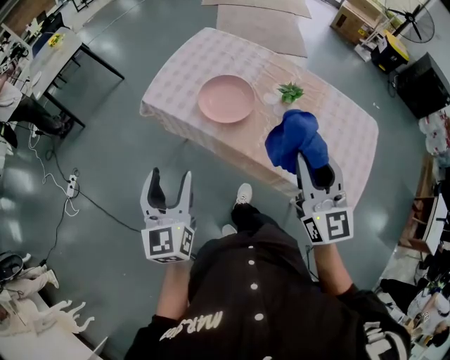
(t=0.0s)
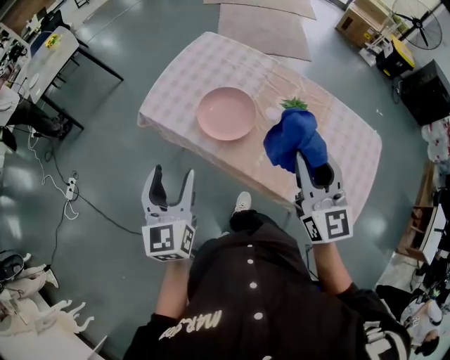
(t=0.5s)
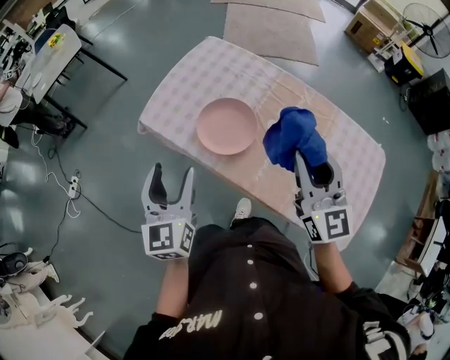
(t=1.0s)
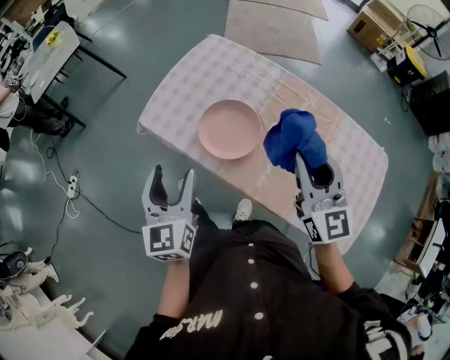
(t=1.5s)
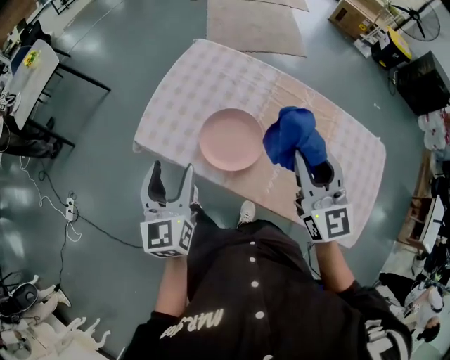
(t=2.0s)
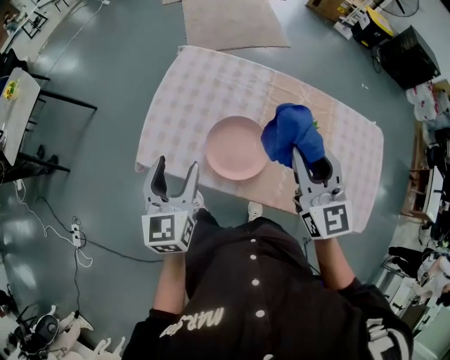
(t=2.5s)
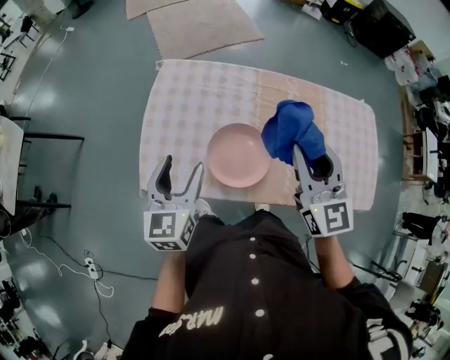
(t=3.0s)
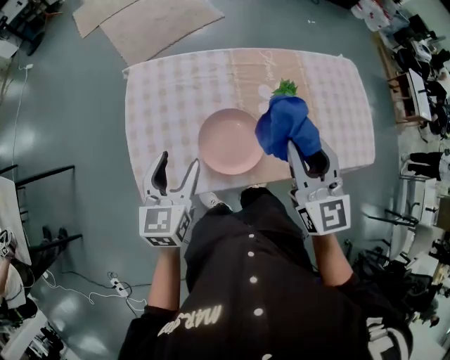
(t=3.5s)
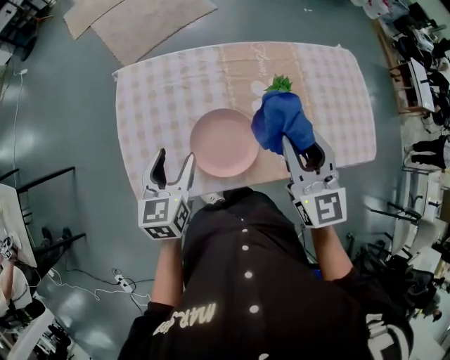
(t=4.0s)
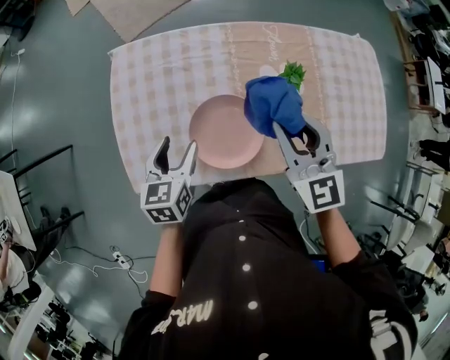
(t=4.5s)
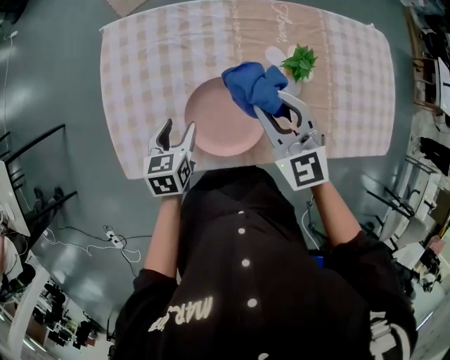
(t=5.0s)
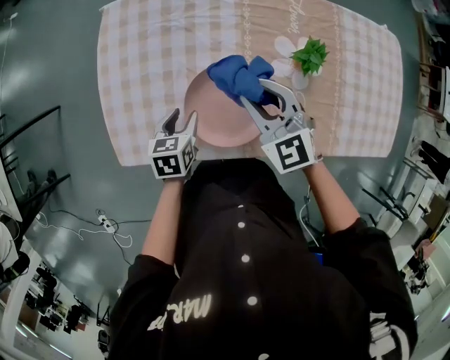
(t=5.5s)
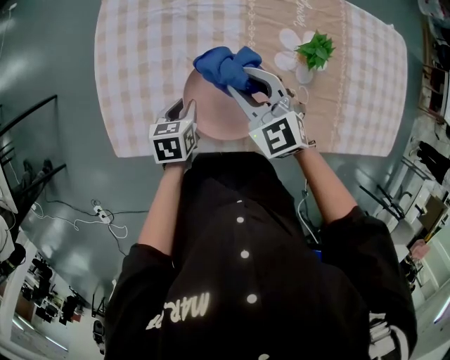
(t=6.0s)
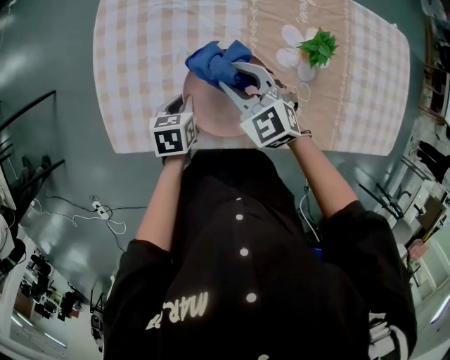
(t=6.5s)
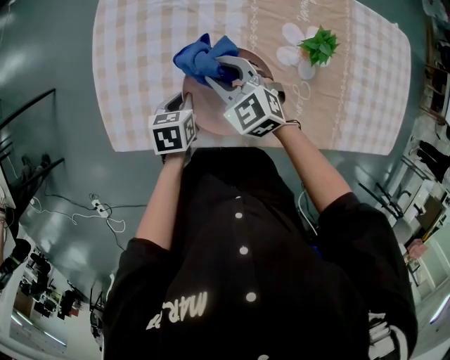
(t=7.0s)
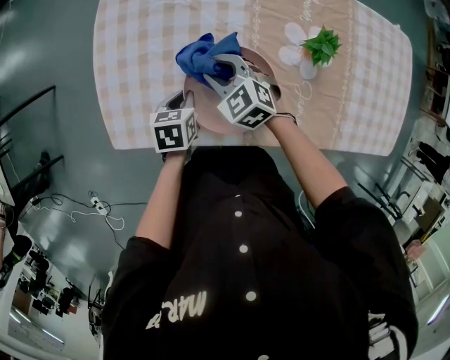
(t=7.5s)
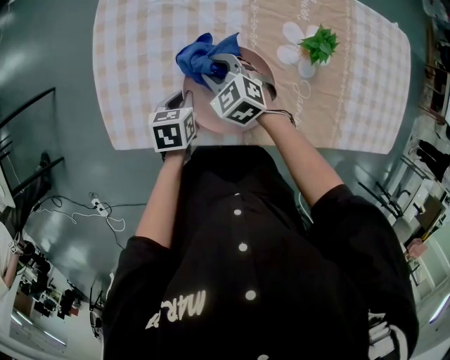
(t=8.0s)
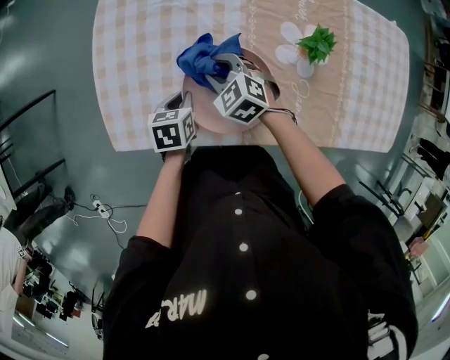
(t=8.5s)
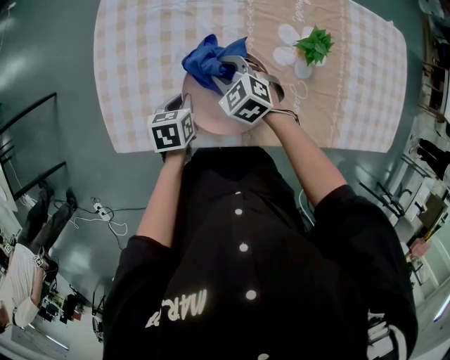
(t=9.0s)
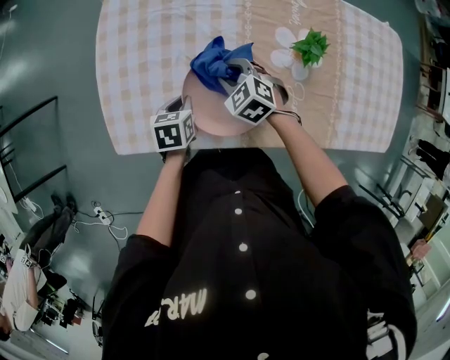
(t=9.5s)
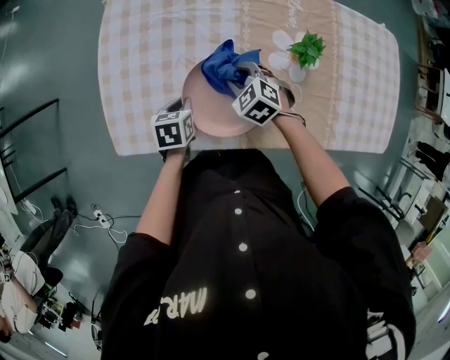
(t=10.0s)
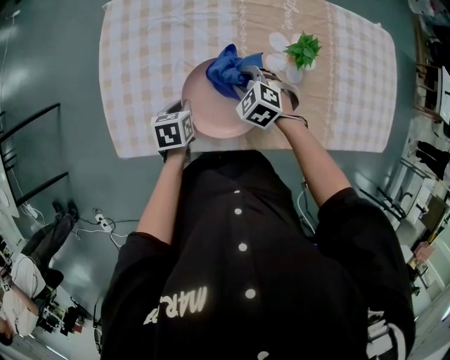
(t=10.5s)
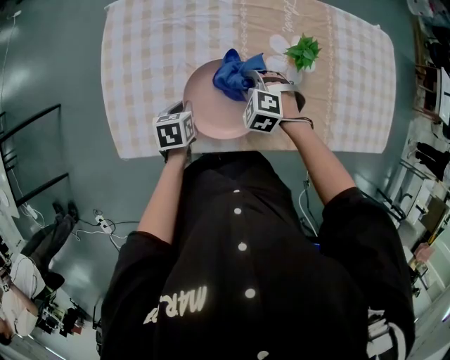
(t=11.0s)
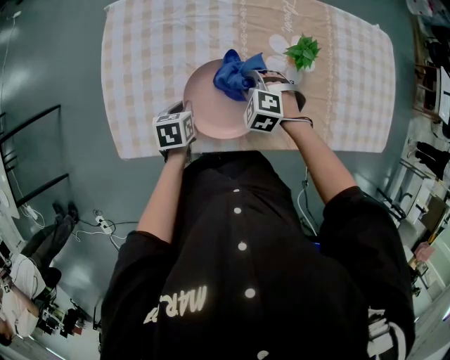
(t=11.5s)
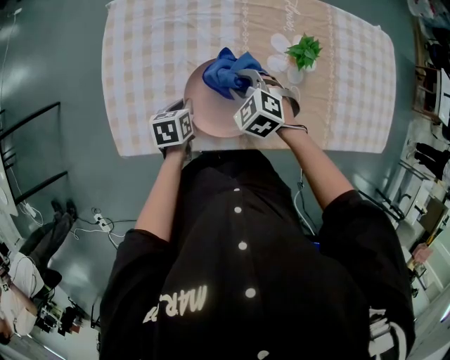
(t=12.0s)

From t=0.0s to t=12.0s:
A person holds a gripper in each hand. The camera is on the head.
From t=0.0s to t=2.0s: Both grippers move forward, some 25 cm.
From t=2.0s to t=4.0s: The left gripper changes place by roughly 20 cm, and turns by approximately 40 degrees. Meanwhile the right gripper shifts by roughly 5 cm, and changes its angle by some 30 degrees.
From t=4.0s to t=6.0s: The right gripper shifts roughly 25 cm downward and to the left, and turns by approximately 40 degrees; the left gripper shifts some 25 cm downward, swivels some 30 degrees, and closes.
From t=6.0s to t=8.0s: The right gripper is displaced downward and to the left by roughly 10 cm.
From t=8.0s to t=10.0s: The right gripper travels to the right by roughly 5 cm.

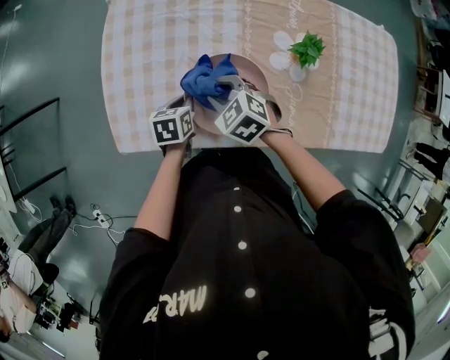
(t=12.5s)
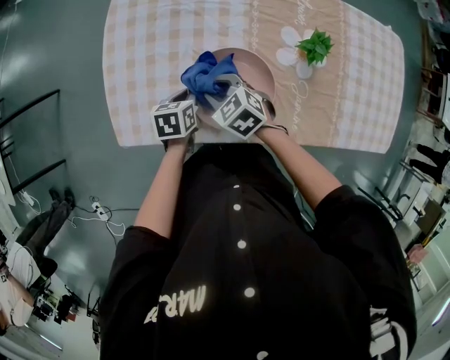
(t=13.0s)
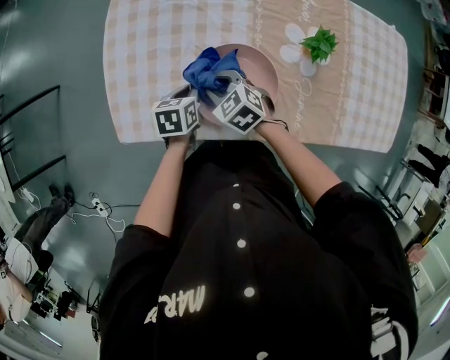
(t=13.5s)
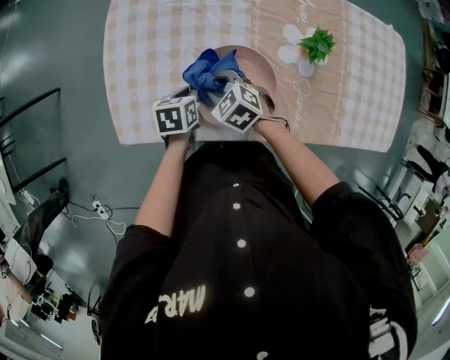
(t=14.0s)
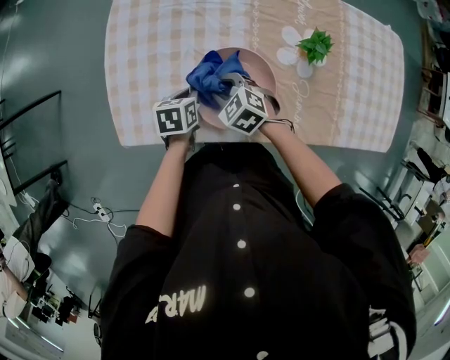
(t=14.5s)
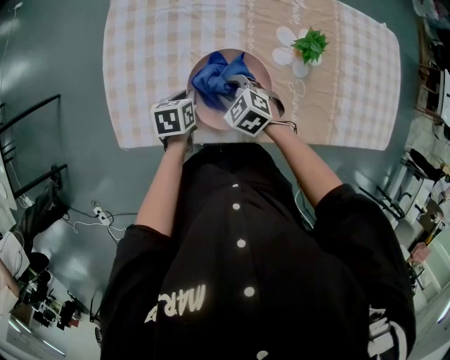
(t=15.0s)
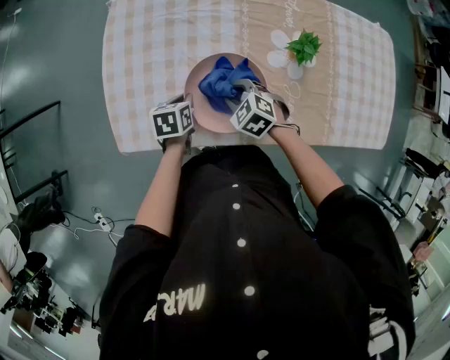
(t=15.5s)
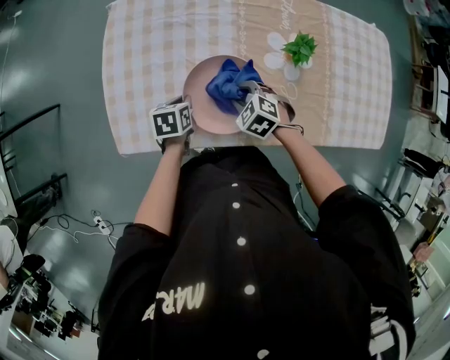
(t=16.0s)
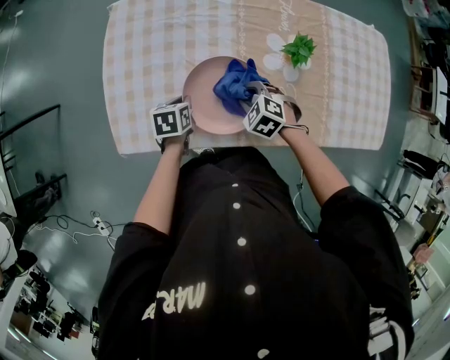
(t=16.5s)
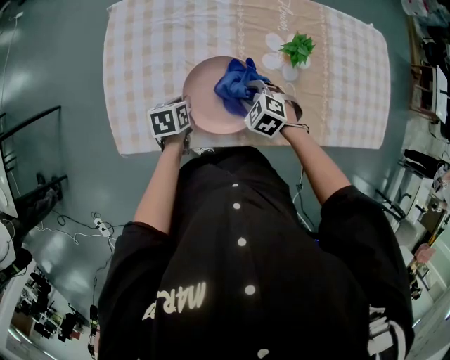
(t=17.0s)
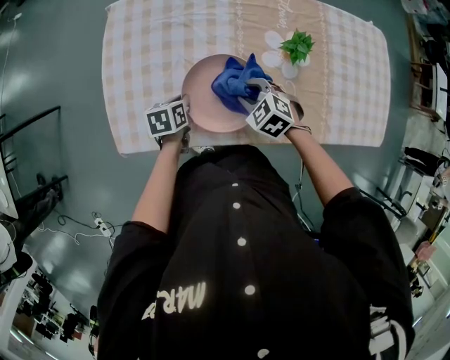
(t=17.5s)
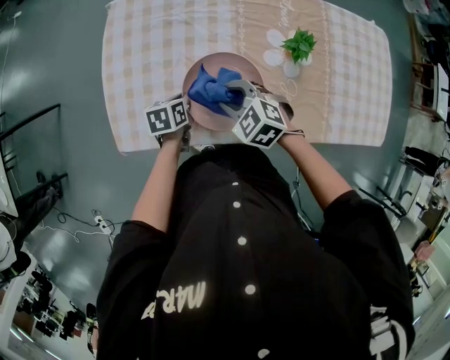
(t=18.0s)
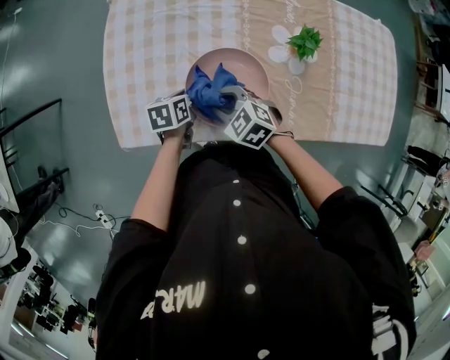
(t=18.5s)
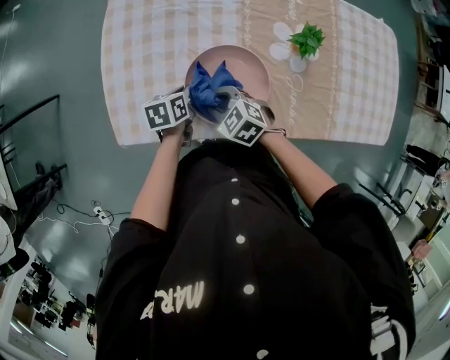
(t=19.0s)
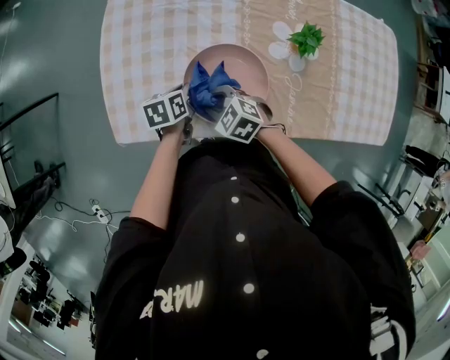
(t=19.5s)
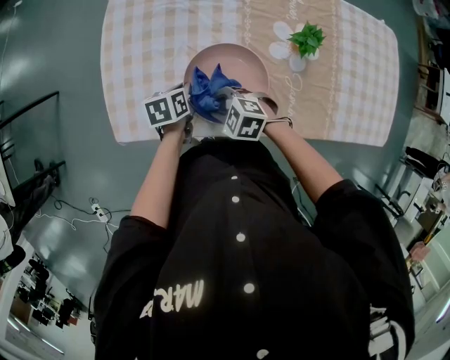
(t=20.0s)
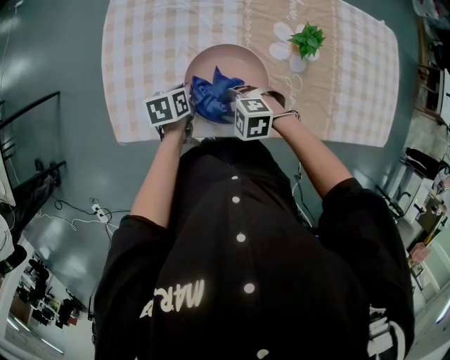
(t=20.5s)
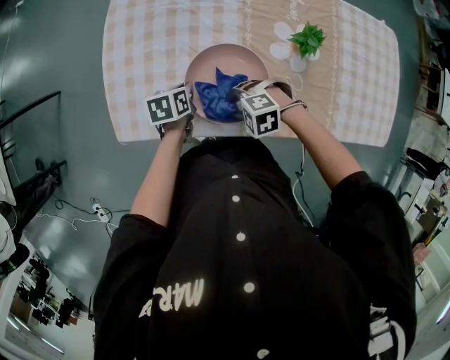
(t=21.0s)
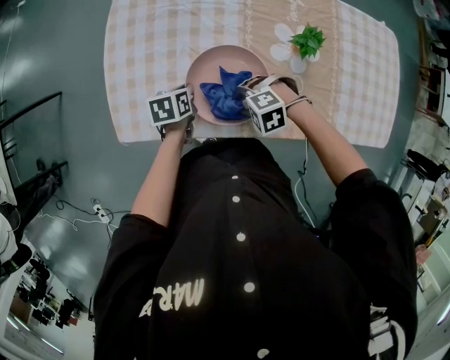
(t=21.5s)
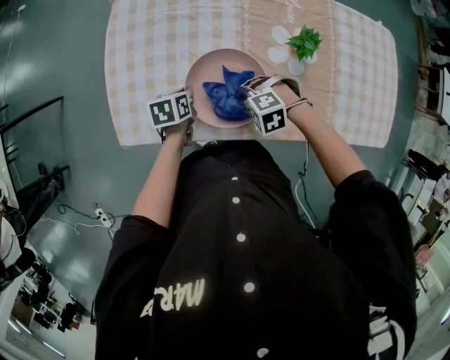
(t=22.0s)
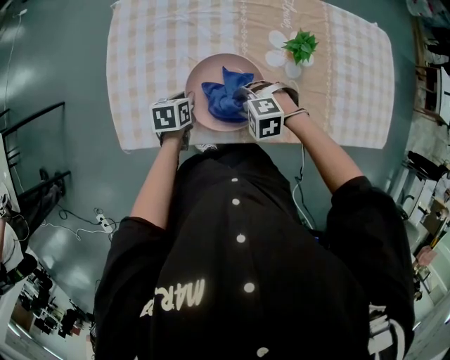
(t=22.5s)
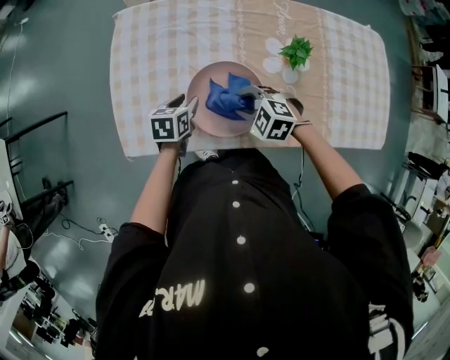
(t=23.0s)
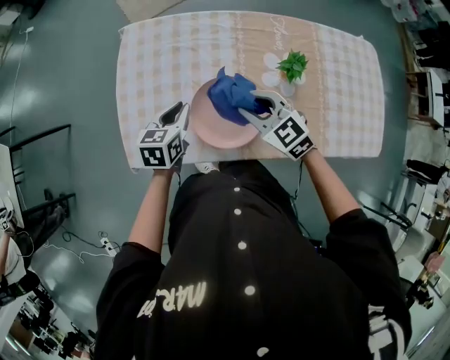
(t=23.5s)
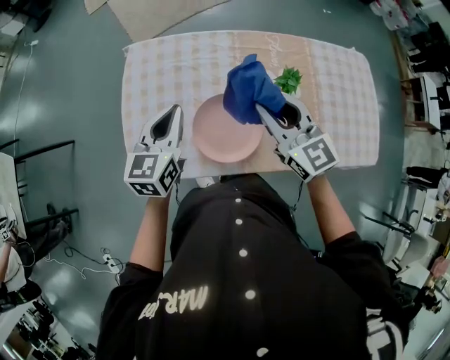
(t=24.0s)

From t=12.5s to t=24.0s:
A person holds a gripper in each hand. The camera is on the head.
From t=12.5s to t=14.5s: The right gripper shifts some 5 cm downward.
From t=14.5s to t=16.5s: The right gripper heads to the right, covering approximately 10 cm.
From t=16.5s to t=18.5s: The right gripper heads to the left, covering roughly 10 cm.
From t=18.5s to t=20.0s: The right gripper shifts by about 5 cm.
From t=20.0s to t=22.0s: The right gripper ends up approximately 10 cm from where it was, and turns by about 30 degrees.
From t=22.0s to t=24.0s: Both grippers travel together upward, some 30 cm. The left gripper angles its fingers upward, by about 40 degrees, and opens and closes again. The right gripper points its fingers some 60 degrees further upward.

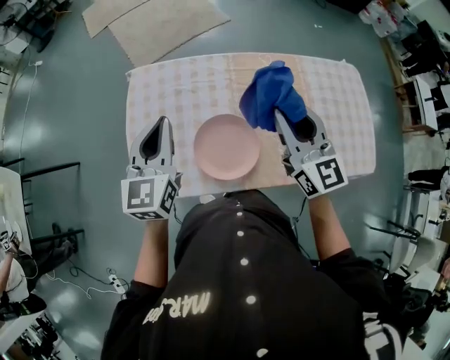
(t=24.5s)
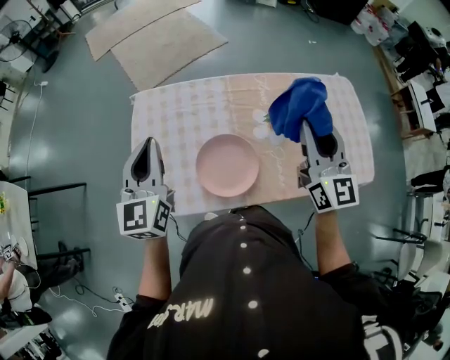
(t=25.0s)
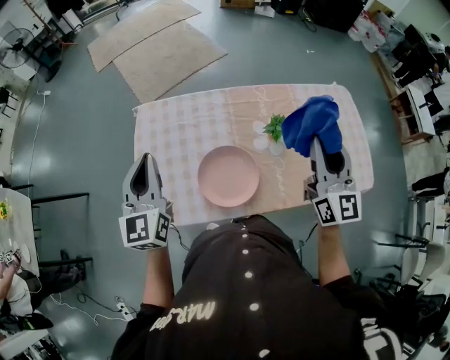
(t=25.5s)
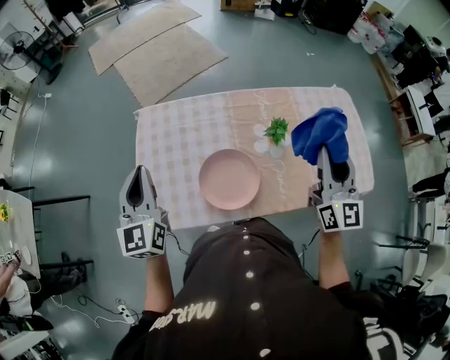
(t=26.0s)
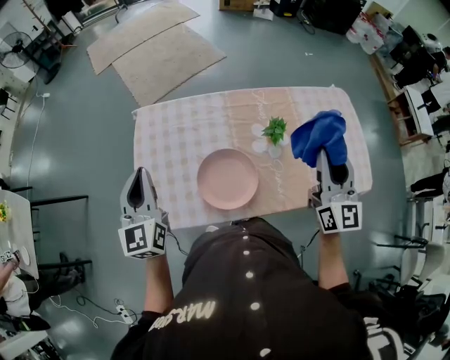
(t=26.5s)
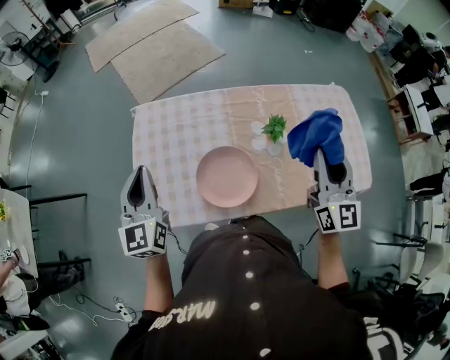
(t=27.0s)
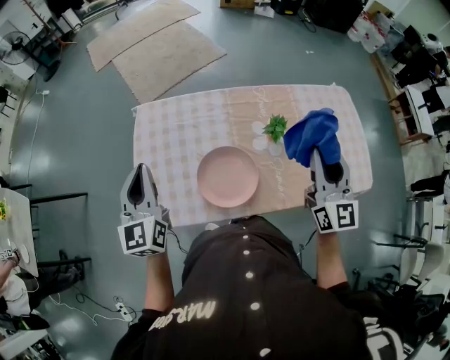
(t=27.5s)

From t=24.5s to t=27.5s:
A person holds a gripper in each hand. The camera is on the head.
From t=24.5s to t=26.0s: The right gripper is displaced to the right by some 10 cm, and turns by some 20 degrees. The left gripper is displaced to the left by about 5 cm.
From t=26.0s to t=27.5s: The grippers stay close to where they were, moving slightly.
